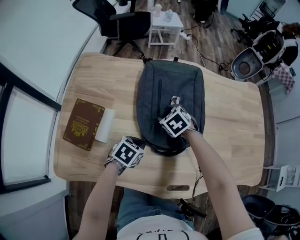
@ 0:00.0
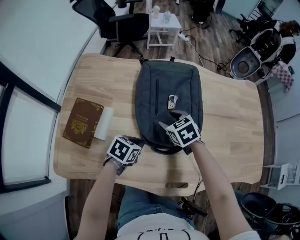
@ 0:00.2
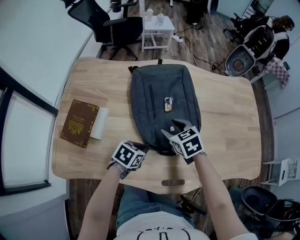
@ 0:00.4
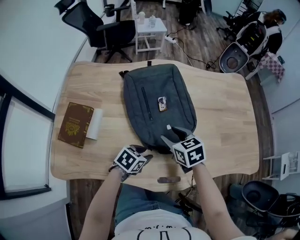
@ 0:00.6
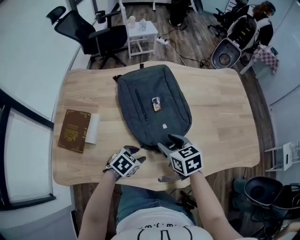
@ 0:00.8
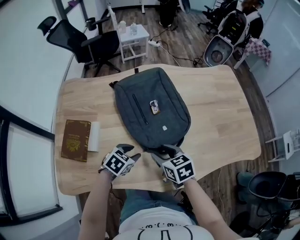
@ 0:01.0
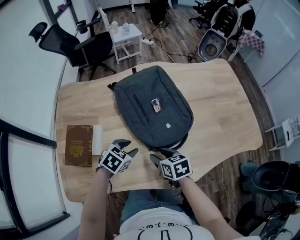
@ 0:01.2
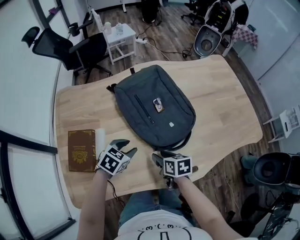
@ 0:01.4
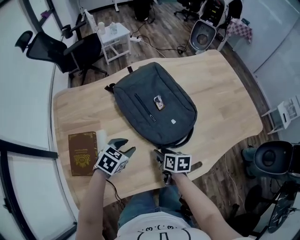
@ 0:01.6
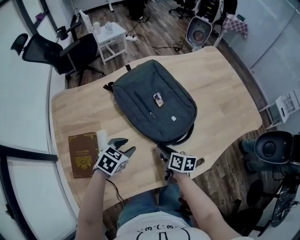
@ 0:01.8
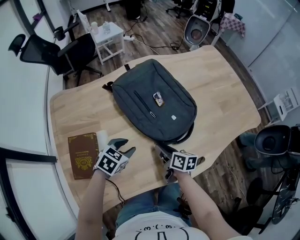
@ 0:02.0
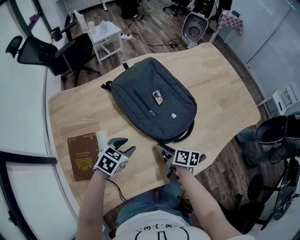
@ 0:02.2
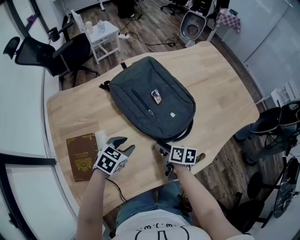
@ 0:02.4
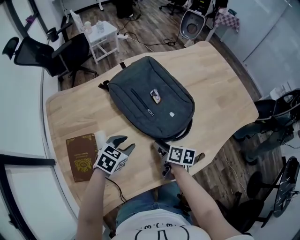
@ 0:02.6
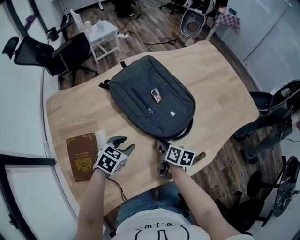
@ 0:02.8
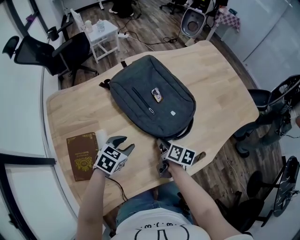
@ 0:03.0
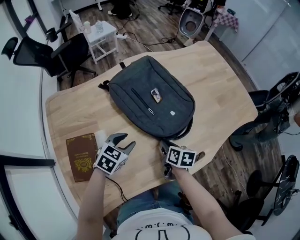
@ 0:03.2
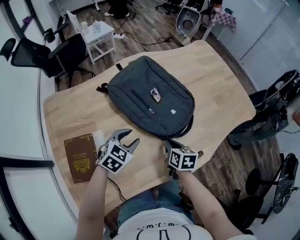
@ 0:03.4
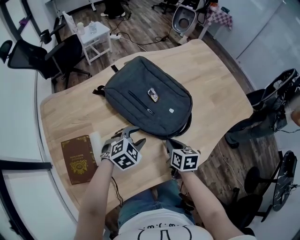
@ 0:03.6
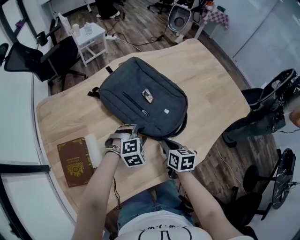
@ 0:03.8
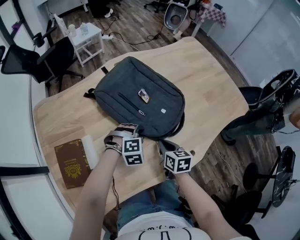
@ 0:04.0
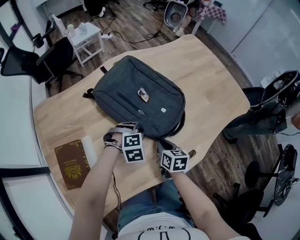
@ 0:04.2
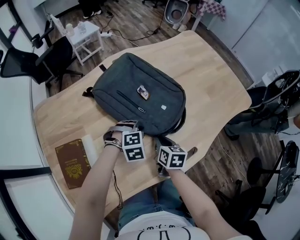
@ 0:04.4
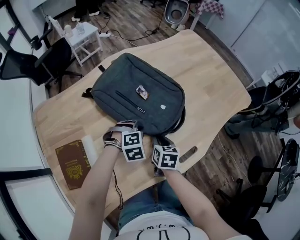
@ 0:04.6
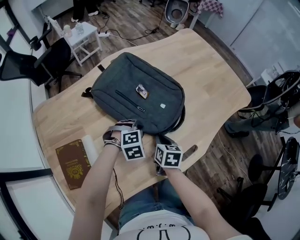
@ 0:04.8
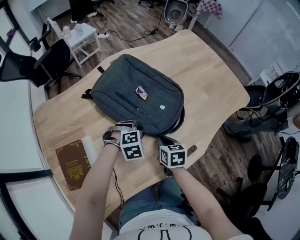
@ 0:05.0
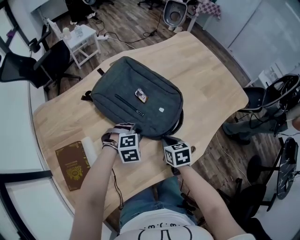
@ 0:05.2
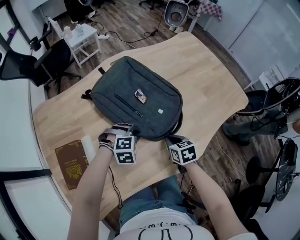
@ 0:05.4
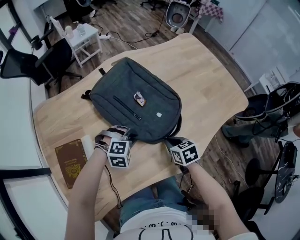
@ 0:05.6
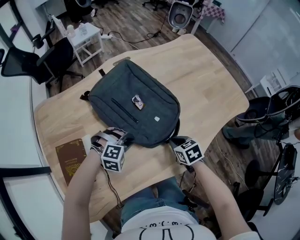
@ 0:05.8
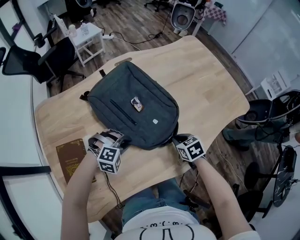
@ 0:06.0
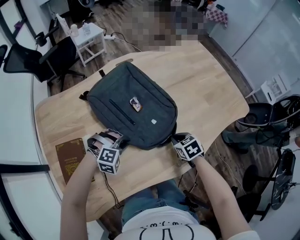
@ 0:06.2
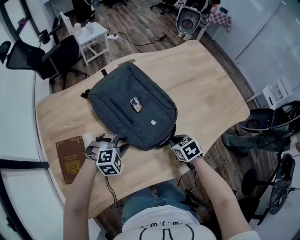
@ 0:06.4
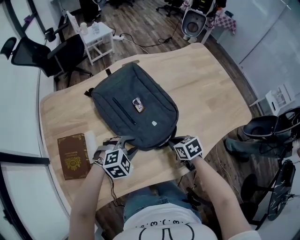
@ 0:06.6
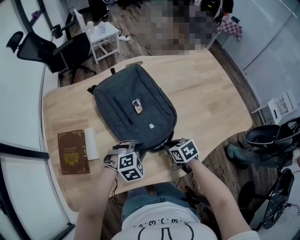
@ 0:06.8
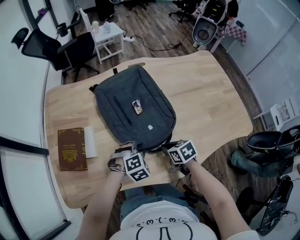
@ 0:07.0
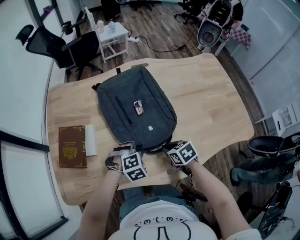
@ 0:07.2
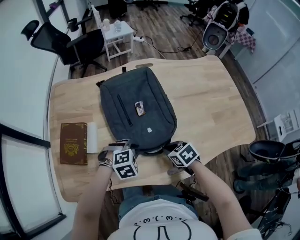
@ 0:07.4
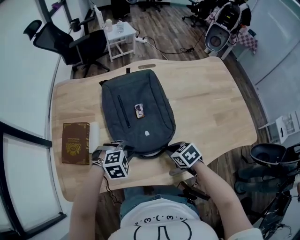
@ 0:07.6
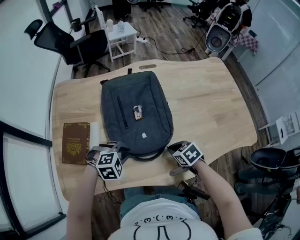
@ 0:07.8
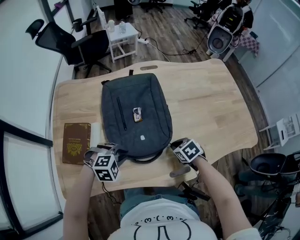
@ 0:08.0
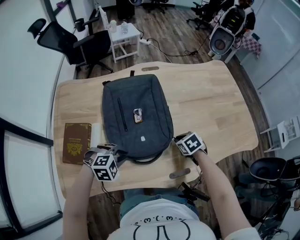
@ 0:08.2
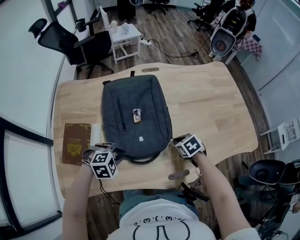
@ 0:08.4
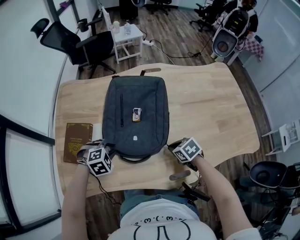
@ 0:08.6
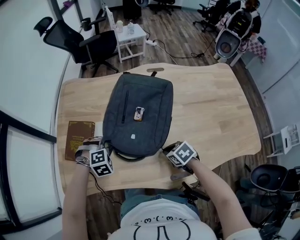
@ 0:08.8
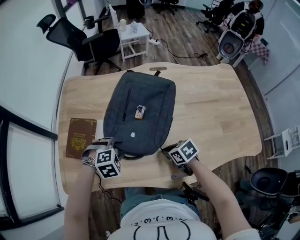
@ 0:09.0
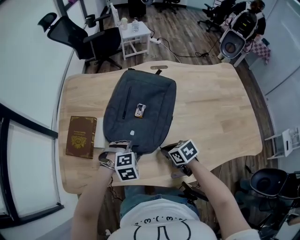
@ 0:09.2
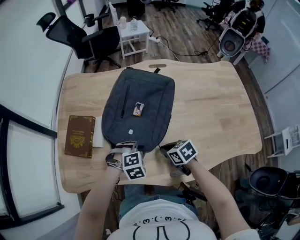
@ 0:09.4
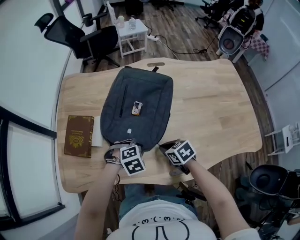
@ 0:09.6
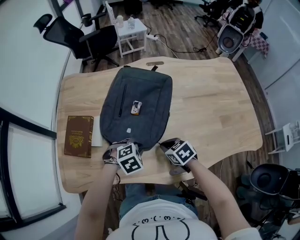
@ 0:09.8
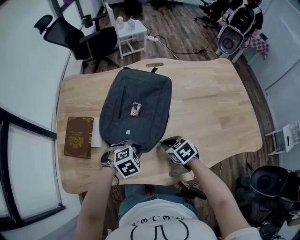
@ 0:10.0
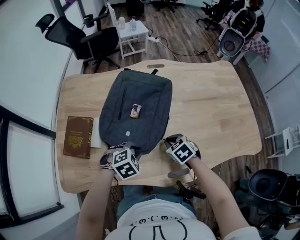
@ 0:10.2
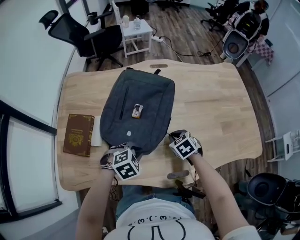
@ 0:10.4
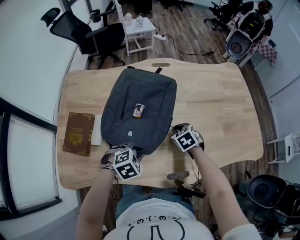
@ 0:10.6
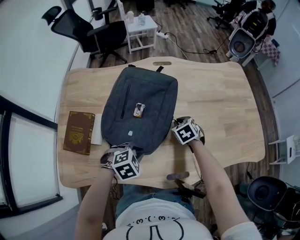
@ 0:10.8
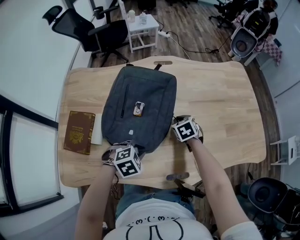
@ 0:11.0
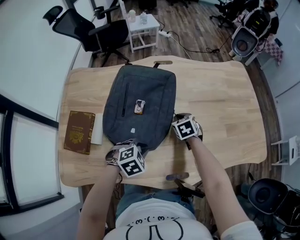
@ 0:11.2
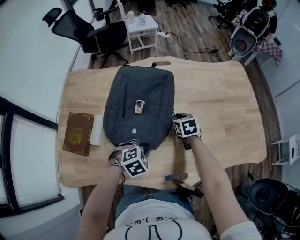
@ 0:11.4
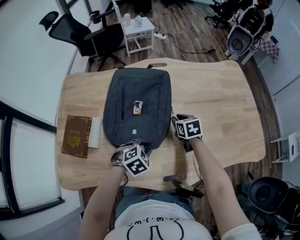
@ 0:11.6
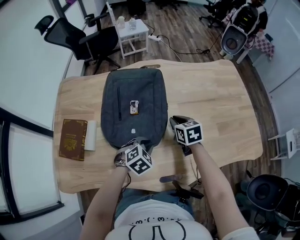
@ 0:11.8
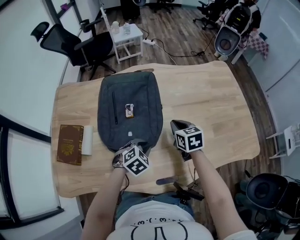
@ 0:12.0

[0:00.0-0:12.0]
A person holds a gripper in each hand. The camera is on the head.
0:00.0 to 0:01.6: The left gripper goes to the right and returns, some 10 cm each way, swivels approximately 30 degrees, and opens its fingers. The right gripper shifts roughly 20 cm backward, and rotates around the line of its fingers by about 70 degrees, clockwise from behind.
0:01.6 to 0:03.0: The right gripper rotates about 20 degrees, and closes its fingers.
0:03.0 to 0:04.4: The right gripper rotates roughly 20 degrees, while the left gripper travels to the right and forward by roughly 15 cm, and rotates around the line of its fingers by about 50 degrees, clockwise from behind.
0:04.4 to 0:06.0: The right gripper moves to the right, about 10 cm, and turns by some 40 degrees. Meanwhile the left gripper shifts about 5 cm backward.
0:06.0 to 0:07.6: The left gripper changes place by some 5 cm, and rotates roughly 40 degrees, while the right gripper swivels approximately 30 degrees.
0:07.6 to 0:09.0: The left gripper opens its fingers.
0:09.0 to 0:10.4: The left gripper changes place by approximately 10 cm, and closes its fingers, while the right gripper shifts by roughly 10 cm, and changes its angle by roughly 30 degrees.
0:10.4 to 0:12.0: The left gripper goes about 10 cm forward and to the right. Meanwhile the right gripper heads forward, upward and to the right, covering approximately 15 cm, and turns by about 30 degrees.

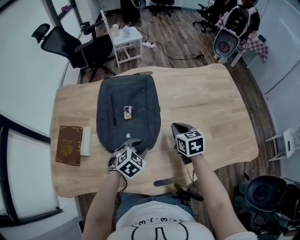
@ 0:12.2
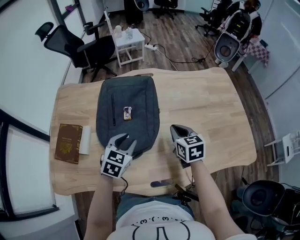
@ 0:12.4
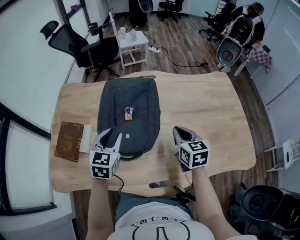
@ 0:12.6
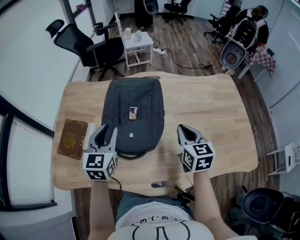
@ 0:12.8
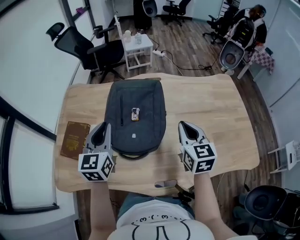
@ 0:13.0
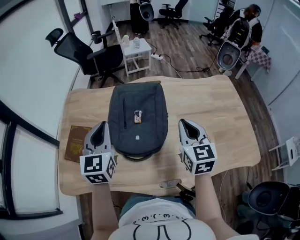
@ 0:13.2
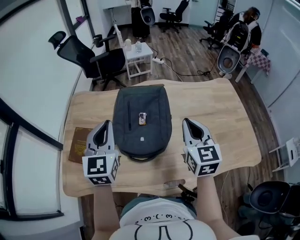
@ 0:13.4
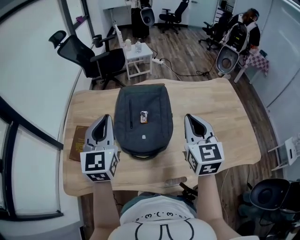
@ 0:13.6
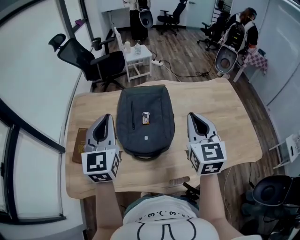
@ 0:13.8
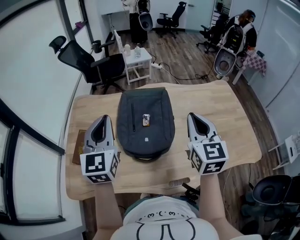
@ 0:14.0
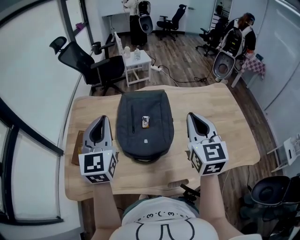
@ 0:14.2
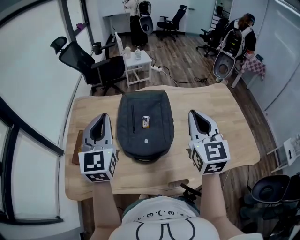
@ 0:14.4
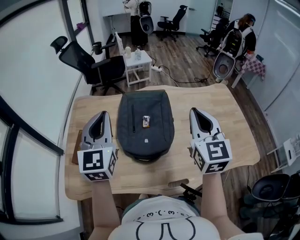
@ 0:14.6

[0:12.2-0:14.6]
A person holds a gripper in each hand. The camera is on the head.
0:12.2 to 0:13.4: The left gripper moves upward and to the left, roughly 35 cm, tilts its fingers approximately 50 degrees upward, and closes up. Meanwhile the right gripper goes some 20 cm upward, and changes its angle by roughly 30 degrees.
0:13.4 to 0:14.6: Both grippers move upward, some 5 cm.

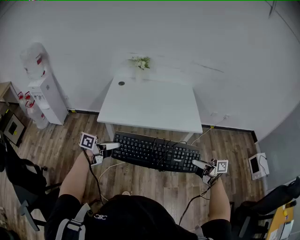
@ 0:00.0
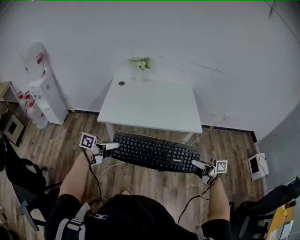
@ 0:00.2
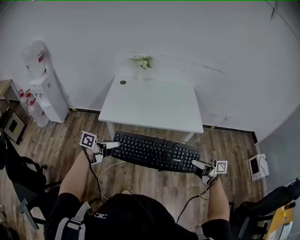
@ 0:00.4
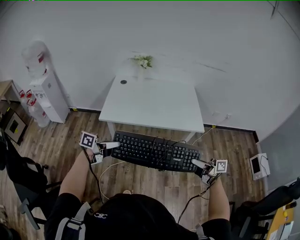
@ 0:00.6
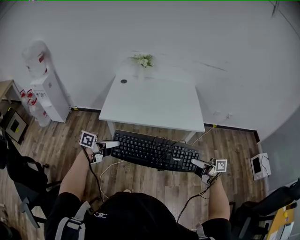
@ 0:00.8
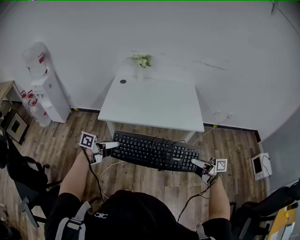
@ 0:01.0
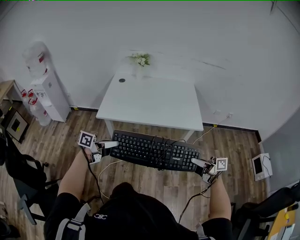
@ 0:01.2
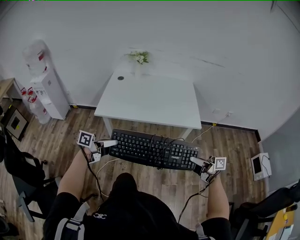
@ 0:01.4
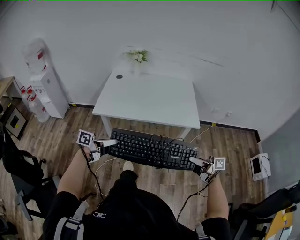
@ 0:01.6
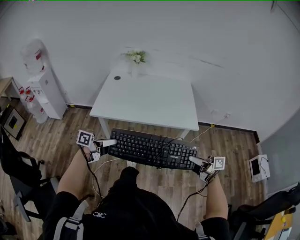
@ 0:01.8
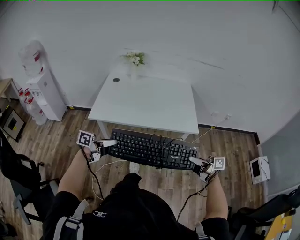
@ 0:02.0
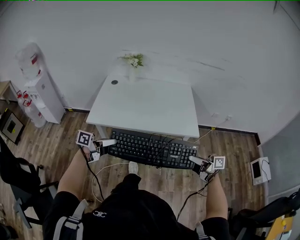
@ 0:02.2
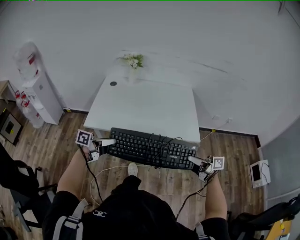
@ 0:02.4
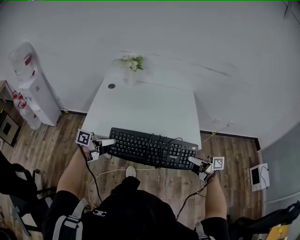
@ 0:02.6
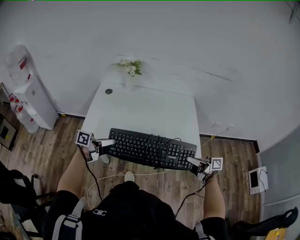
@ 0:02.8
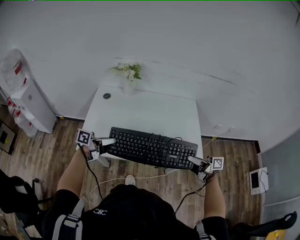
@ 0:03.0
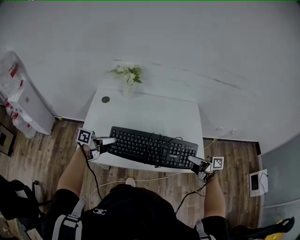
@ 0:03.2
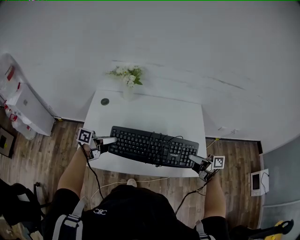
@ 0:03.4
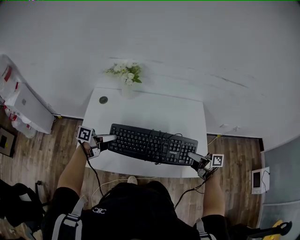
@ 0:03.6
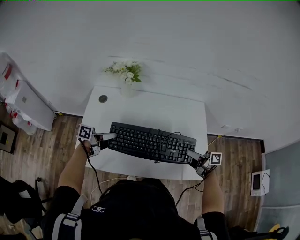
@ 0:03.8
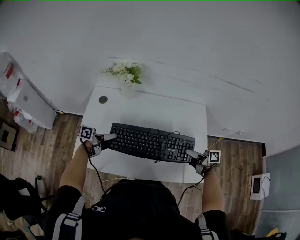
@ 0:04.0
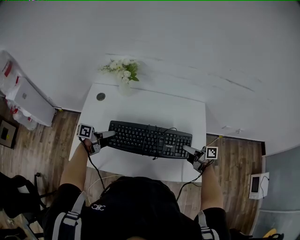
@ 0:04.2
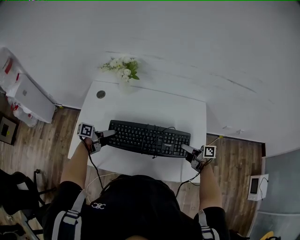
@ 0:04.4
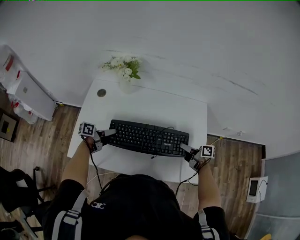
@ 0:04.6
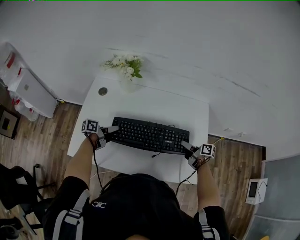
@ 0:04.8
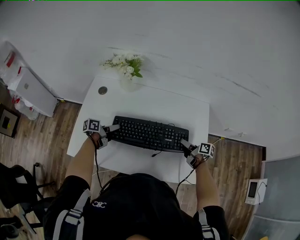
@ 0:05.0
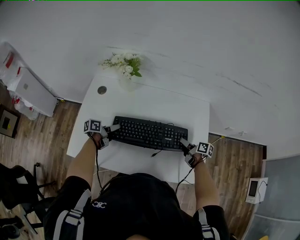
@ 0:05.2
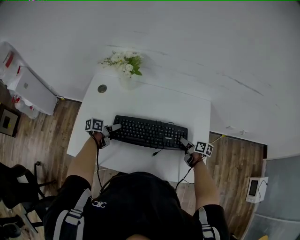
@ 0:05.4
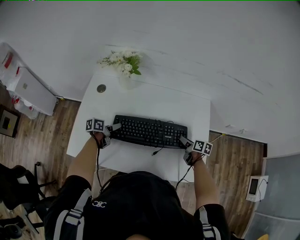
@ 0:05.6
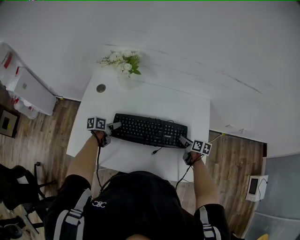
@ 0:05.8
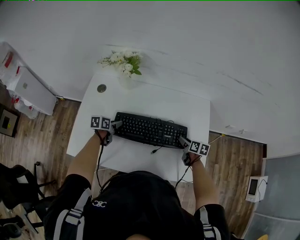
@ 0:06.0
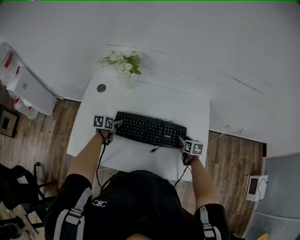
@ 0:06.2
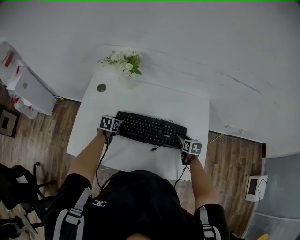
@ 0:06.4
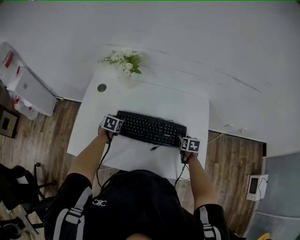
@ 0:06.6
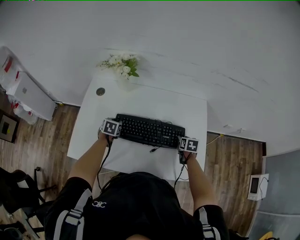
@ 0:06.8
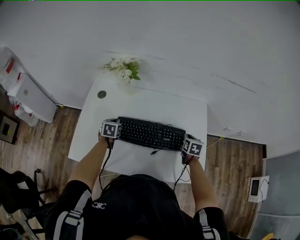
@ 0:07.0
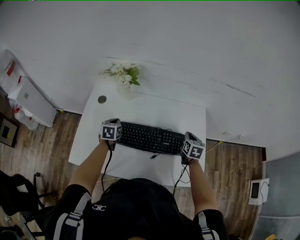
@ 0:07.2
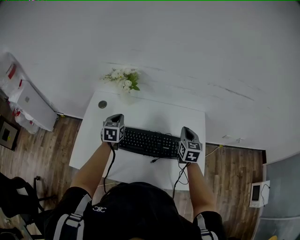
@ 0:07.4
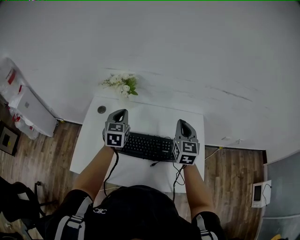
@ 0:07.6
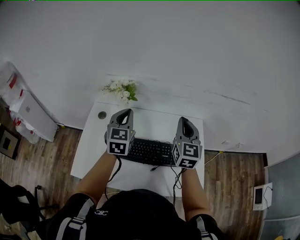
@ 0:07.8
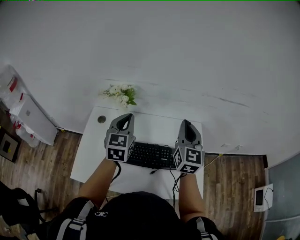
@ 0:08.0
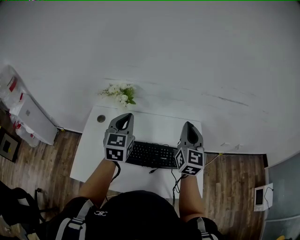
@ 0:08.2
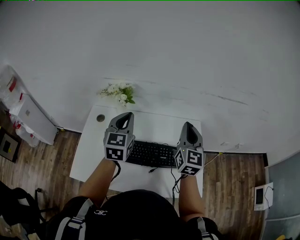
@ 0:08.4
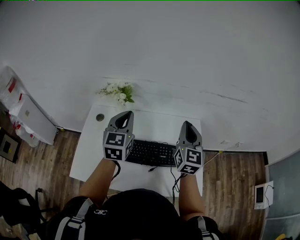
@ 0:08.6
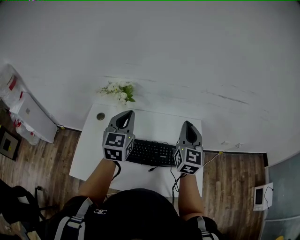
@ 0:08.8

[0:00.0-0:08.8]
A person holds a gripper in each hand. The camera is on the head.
0:00.0 to 0:01.4: The left gripper shifts by some 5 cm, while the right gripper ends up some 5 cm from where it was.
0:01.4 to 0:03.0: The left gripper changes place by roughly 40 cm, while the right gripper moves roughly 35 cm.
0:03.0 to 0:04.4: The left gripper shifts by roughly 25 cm, while the right gripper shifts by some 25 cm.
0:04.4 to 0:05.8: Both grippers move downward and forward, some 10 cm. The right gripper changes its angle by roughly 30 degrees, while the left gripper swivels approximately 30 degrees.
0:05.8 to 0:07.4: The grippers both shift upward by roughly 20 cm. The right gripper swivels about 50 degrees, and closes. Meanwhile the left gripper turns by some 50 degrees, and closes up.
0:07.4 to 0:08.8: The left gripper moves upward and to the right, approximately 25 cm, and changes its angle by about 30 degrees, while the right gripper goes roughly 20 cm upward, and turns by approximately 20 degrees.
